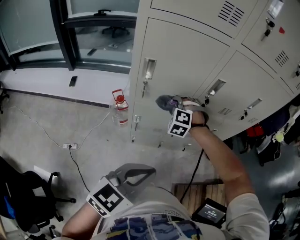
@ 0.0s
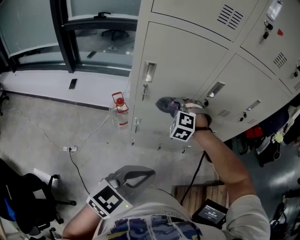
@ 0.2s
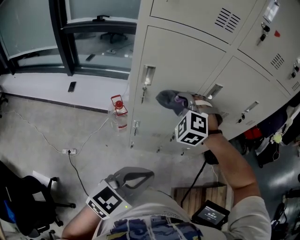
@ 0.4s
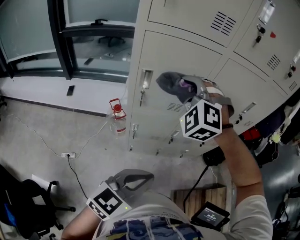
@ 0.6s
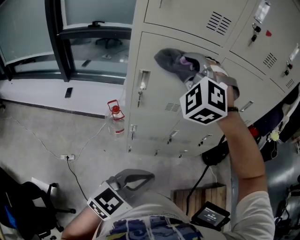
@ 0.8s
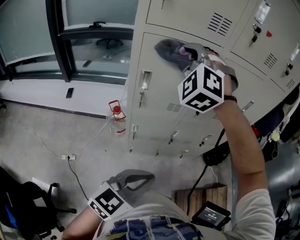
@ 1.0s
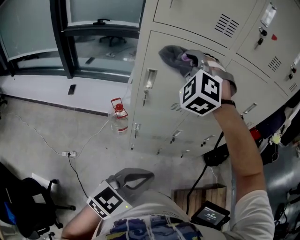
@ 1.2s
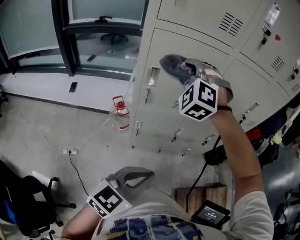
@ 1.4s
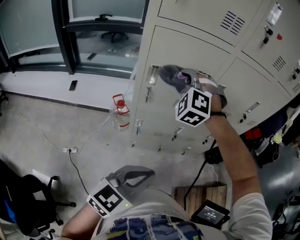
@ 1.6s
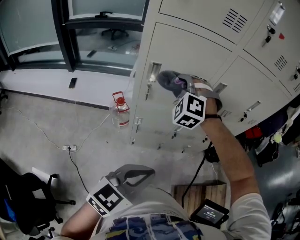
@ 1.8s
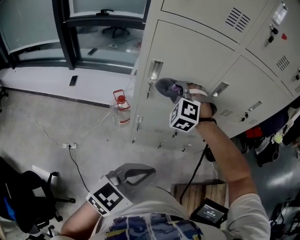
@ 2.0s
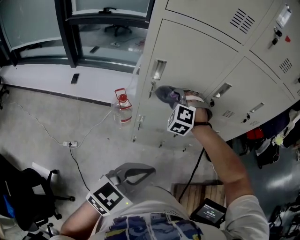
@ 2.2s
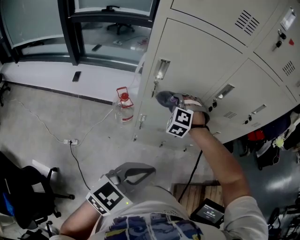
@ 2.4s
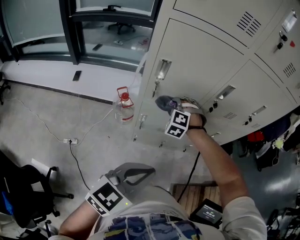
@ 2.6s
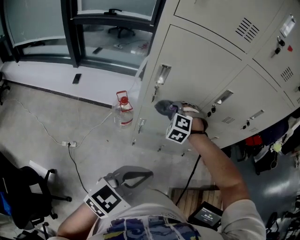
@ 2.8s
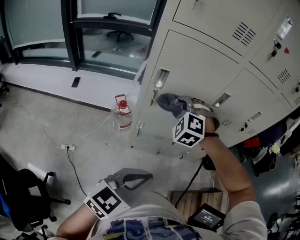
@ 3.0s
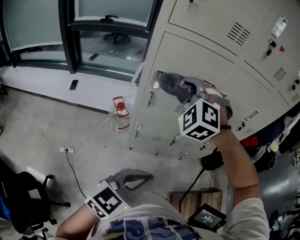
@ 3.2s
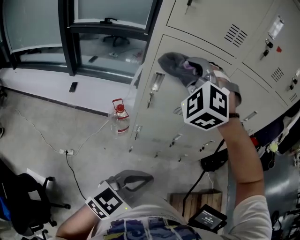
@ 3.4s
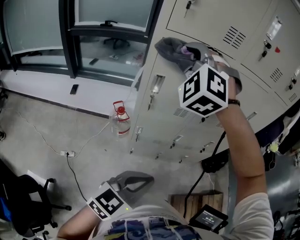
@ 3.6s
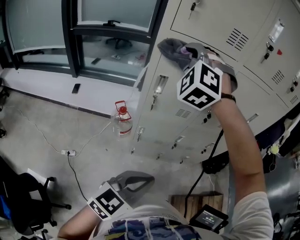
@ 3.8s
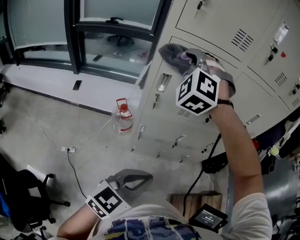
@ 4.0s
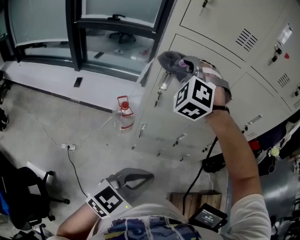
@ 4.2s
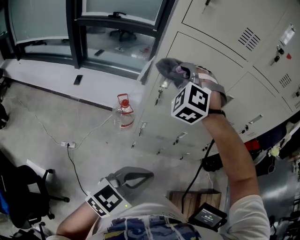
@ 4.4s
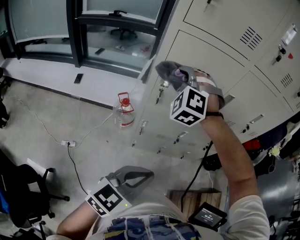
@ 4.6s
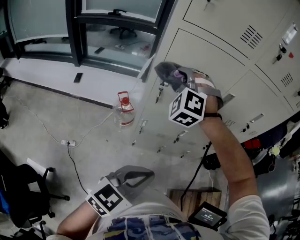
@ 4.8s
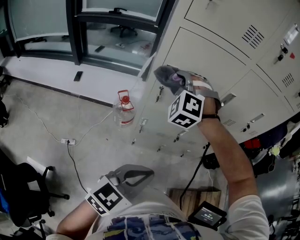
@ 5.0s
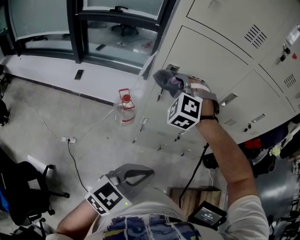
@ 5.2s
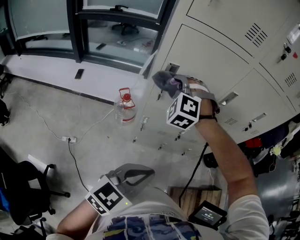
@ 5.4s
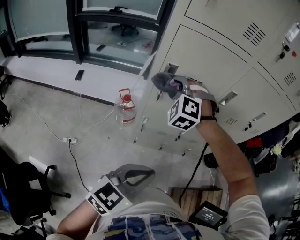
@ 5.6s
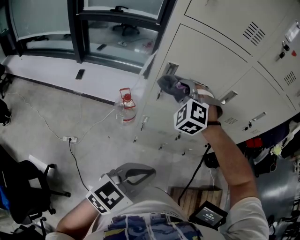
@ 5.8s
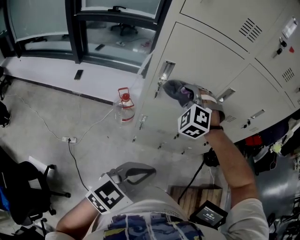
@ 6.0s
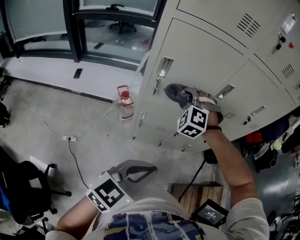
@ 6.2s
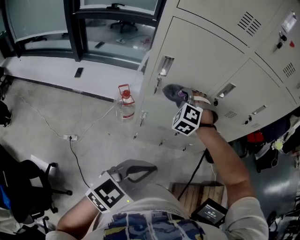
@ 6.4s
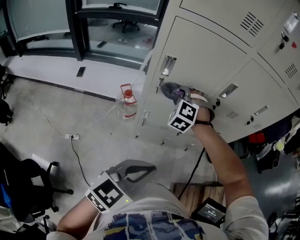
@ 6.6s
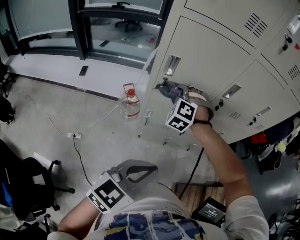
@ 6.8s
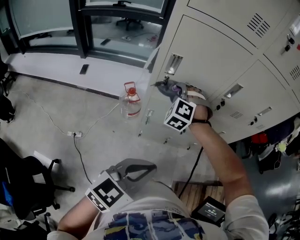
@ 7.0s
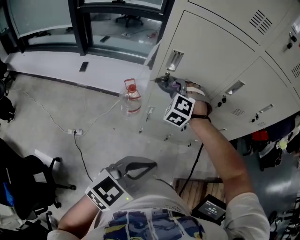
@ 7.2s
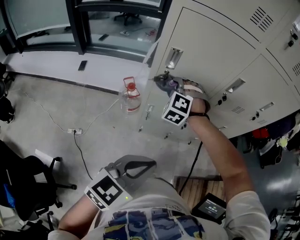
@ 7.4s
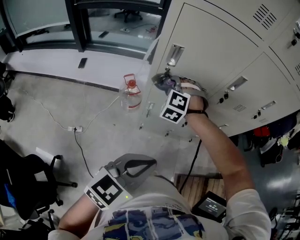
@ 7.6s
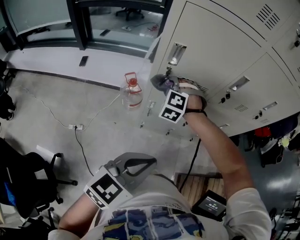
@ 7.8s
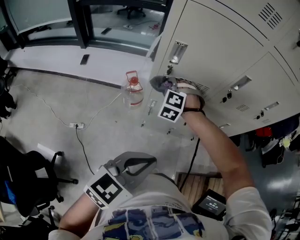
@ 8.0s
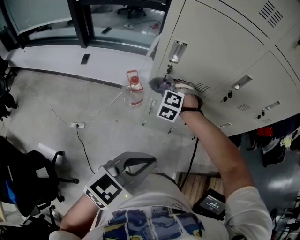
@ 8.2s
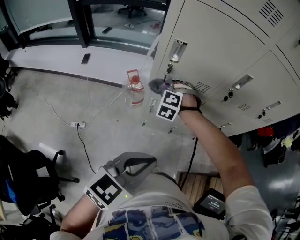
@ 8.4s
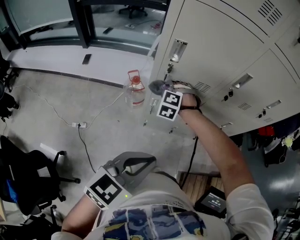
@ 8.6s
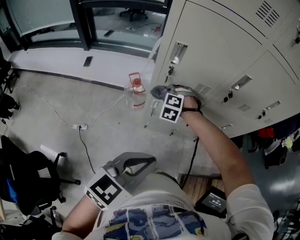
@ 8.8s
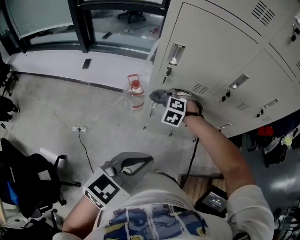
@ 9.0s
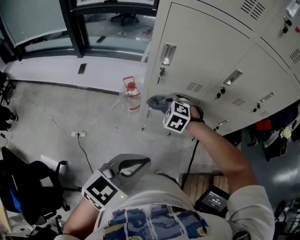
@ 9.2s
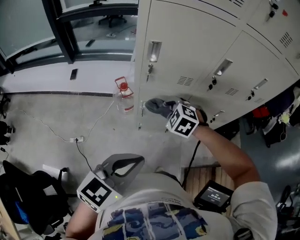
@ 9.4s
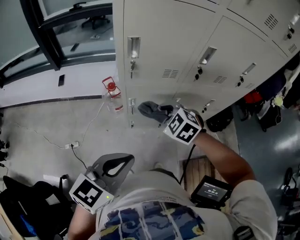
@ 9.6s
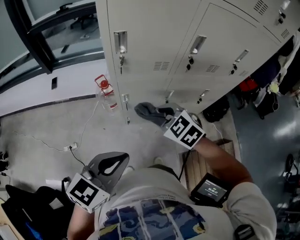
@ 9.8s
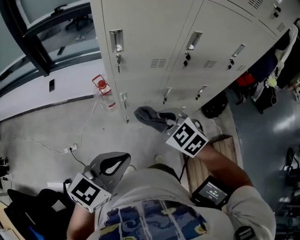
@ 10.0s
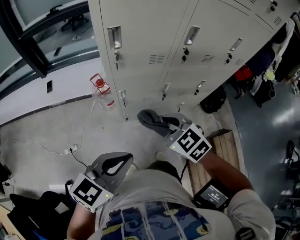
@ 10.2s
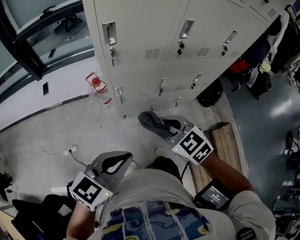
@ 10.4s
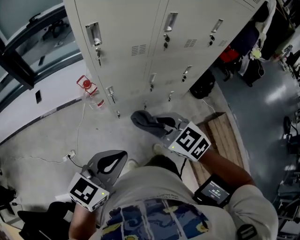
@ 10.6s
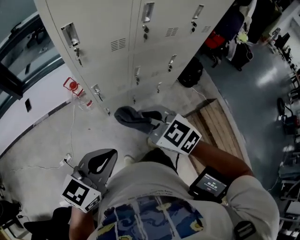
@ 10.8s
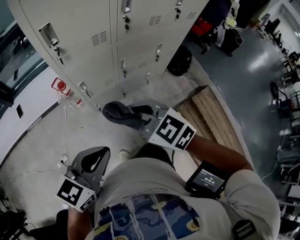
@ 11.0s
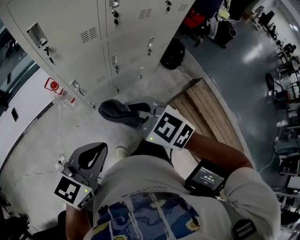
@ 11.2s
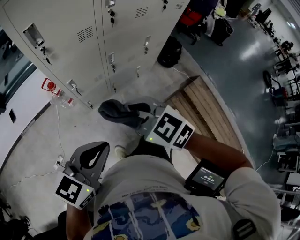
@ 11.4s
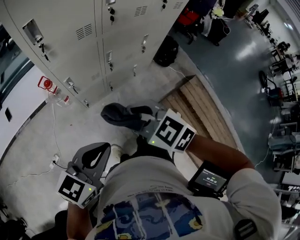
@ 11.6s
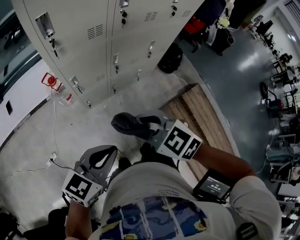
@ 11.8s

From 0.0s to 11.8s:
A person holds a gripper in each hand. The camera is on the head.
From 8.8s to 10.4s: The left gripper changes place by approximately 5 cm.
From 10.4s to 11.8s: The left gripper ends up approximately 5 cm from where it was.

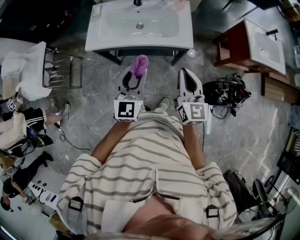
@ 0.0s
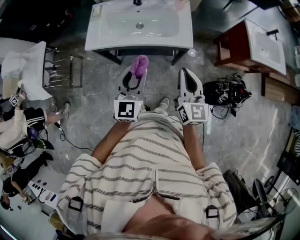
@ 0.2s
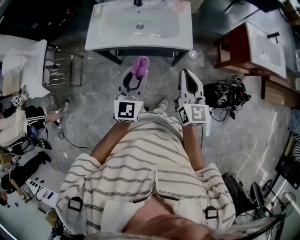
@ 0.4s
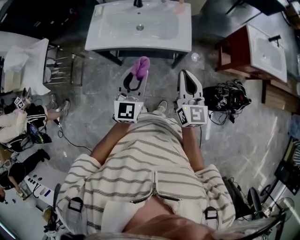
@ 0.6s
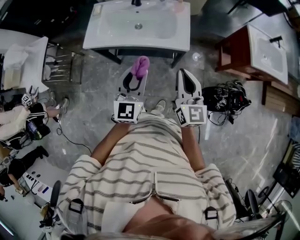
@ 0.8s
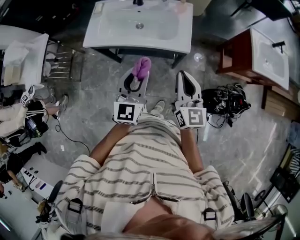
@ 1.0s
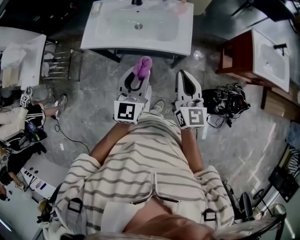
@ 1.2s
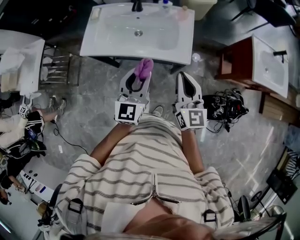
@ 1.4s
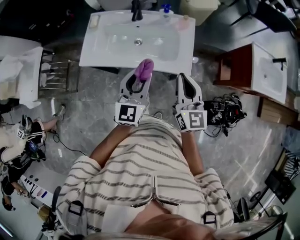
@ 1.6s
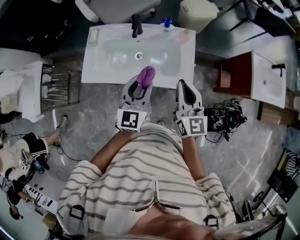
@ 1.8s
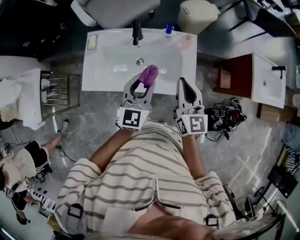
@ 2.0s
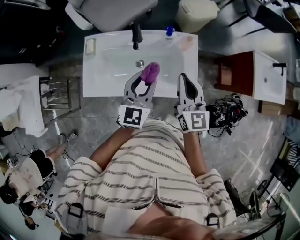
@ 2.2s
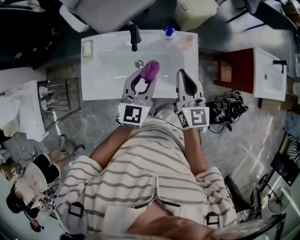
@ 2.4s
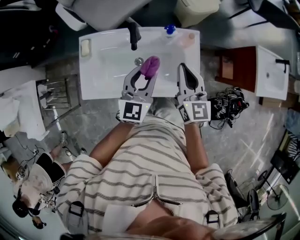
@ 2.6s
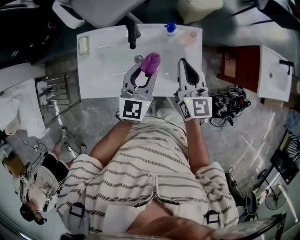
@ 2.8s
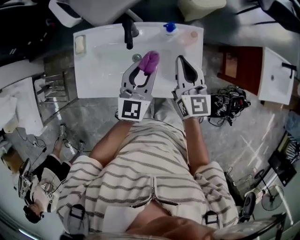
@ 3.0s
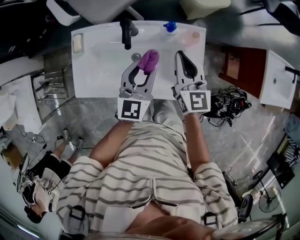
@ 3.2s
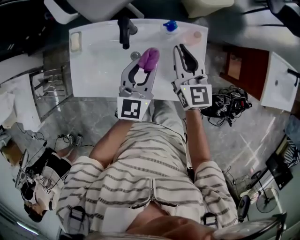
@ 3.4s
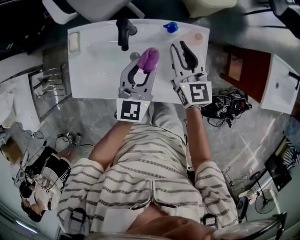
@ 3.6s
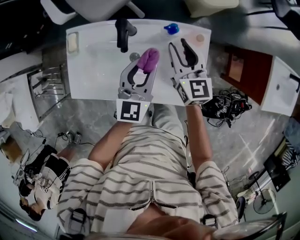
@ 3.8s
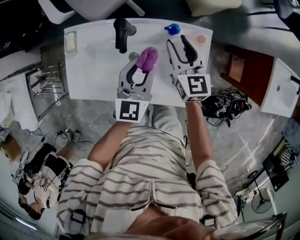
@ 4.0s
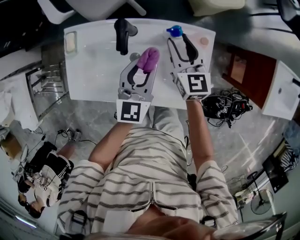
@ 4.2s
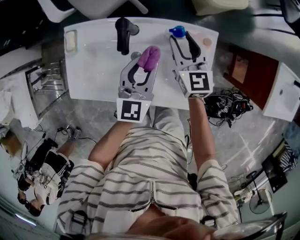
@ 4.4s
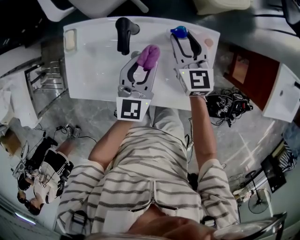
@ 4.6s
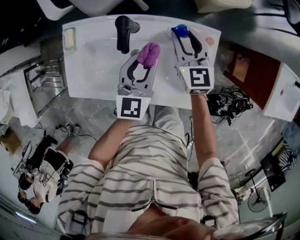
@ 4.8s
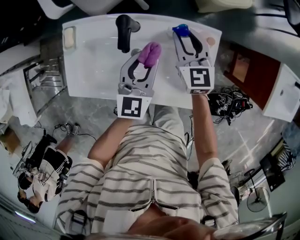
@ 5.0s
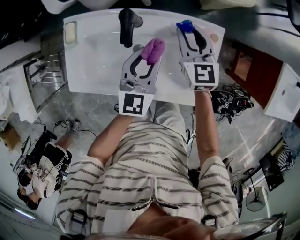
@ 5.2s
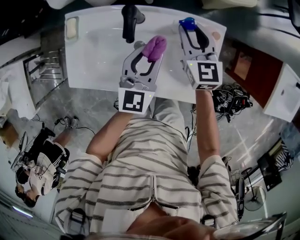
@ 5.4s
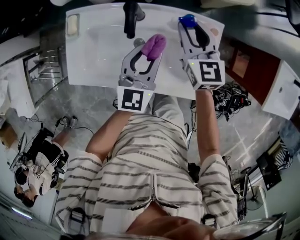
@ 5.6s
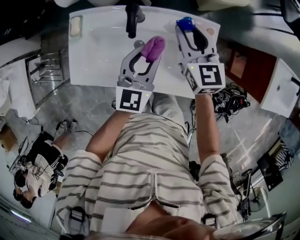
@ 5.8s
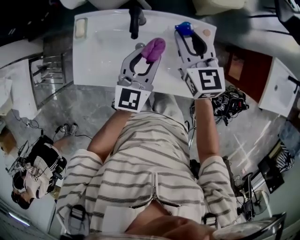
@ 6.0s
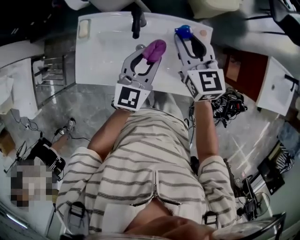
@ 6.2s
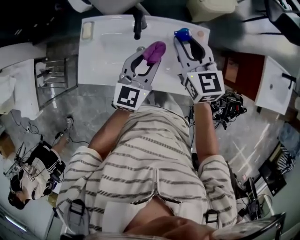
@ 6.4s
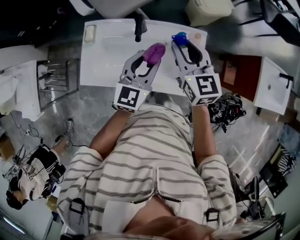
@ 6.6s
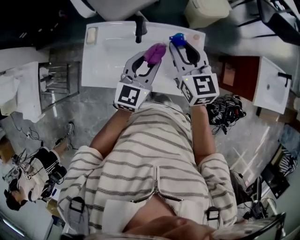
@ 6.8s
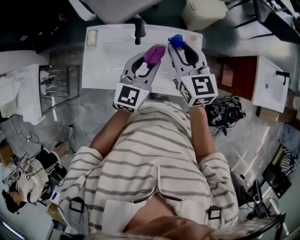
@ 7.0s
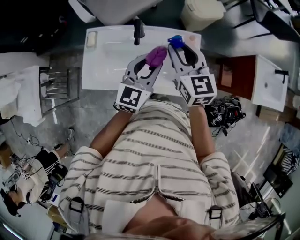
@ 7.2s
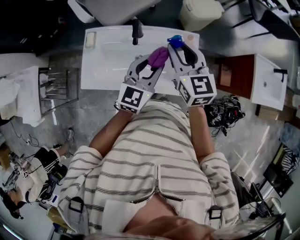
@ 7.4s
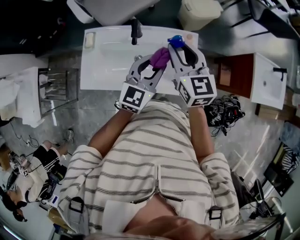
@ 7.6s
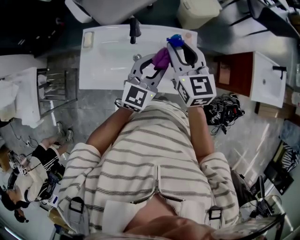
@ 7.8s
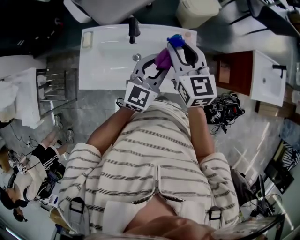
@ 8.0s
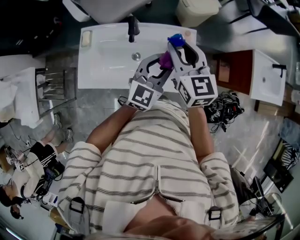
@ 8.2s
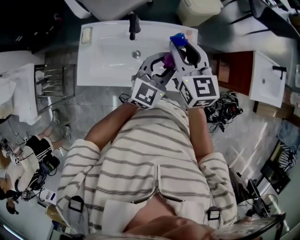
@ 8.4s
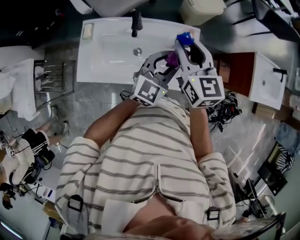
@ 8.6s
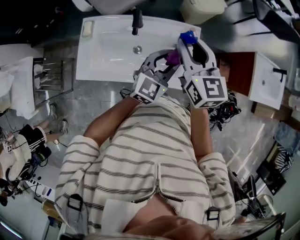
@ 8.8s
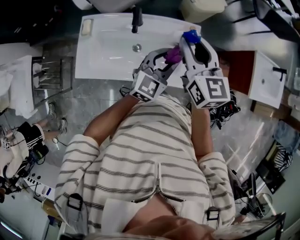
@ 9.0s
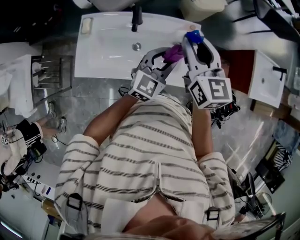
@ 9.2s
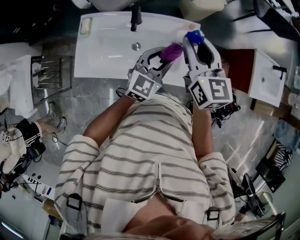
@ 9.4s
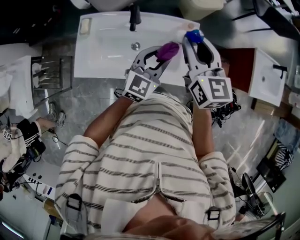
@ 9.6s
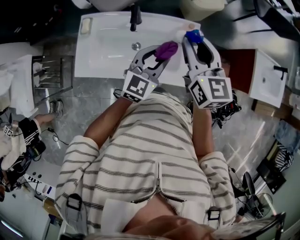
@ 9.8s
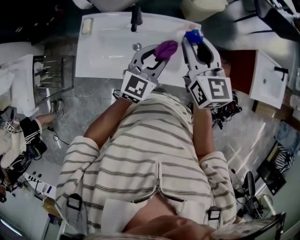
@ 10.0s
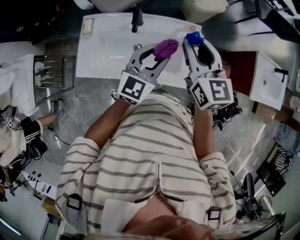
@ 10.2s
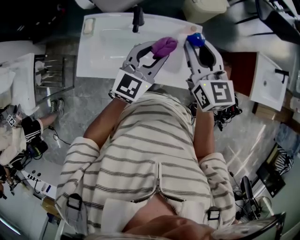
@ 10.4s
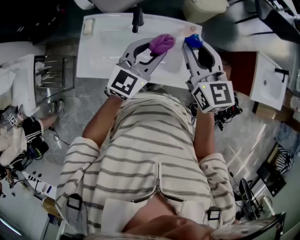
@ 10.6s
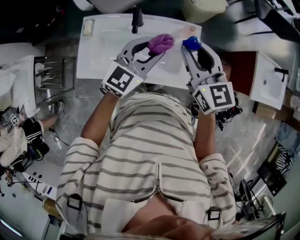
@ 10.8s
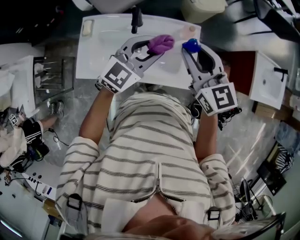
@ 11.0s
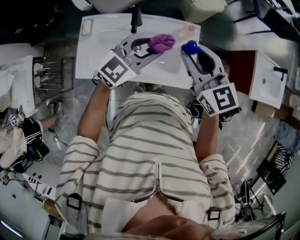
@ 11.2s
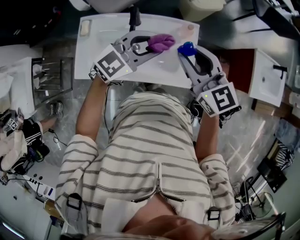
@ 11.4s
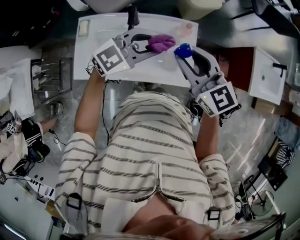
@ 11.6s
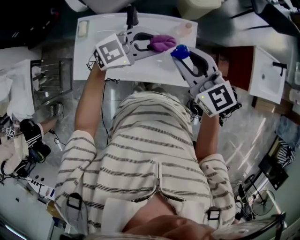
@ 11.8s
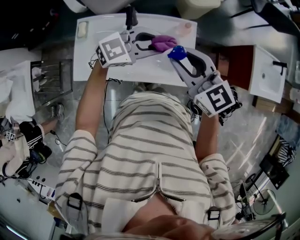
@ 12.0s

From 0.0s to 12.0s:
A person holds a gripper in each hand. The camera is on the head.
From 0.0s to 1.6s: The grippers both shift forward by roughly 15 cm.
From 1.6s to 3.0s: Both grippers travel together forward, some 25 cm.
From 3.0s to 4.4s: The left gripper goes approximately 10 cm downward and forward. The right gripper goes about 15 cm forward and downward, and opens.
From 4.4s to 6.0s: The left gripper is displaced upward by about 5 cm; the right gripper goes roughly 10 cm upward.
From 6.0s to 7.6s: Both grippers move upward and backward, approximately 10 cm.
From 7.6s to 9.0s: The left gripper shifts by some 5 cm.
From 9.0s to 10.4s: The left gripper heads upward, covering approximately 5 cm.
From 10.4s to 12.0s: The right gripper changes place by some 5 cm, and rotates about 20 degrees; the left gripper turns by approximately 40 degrees.

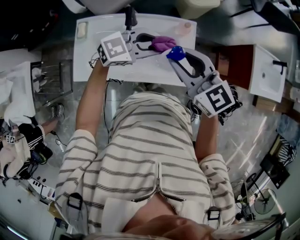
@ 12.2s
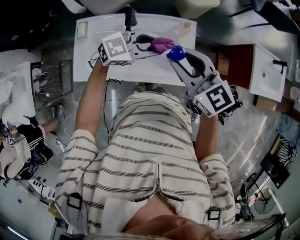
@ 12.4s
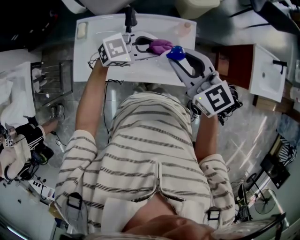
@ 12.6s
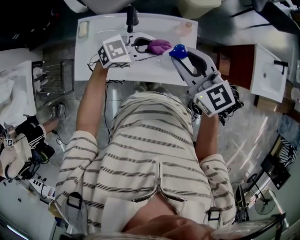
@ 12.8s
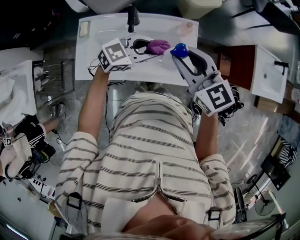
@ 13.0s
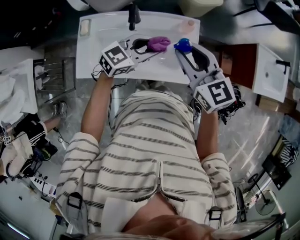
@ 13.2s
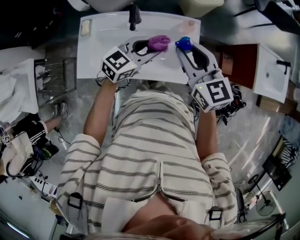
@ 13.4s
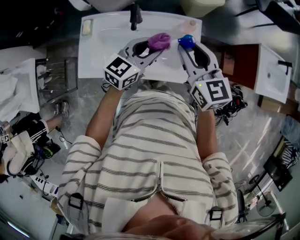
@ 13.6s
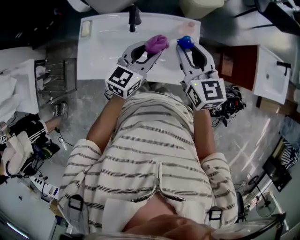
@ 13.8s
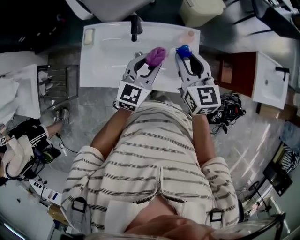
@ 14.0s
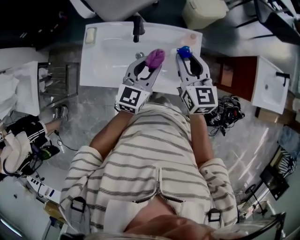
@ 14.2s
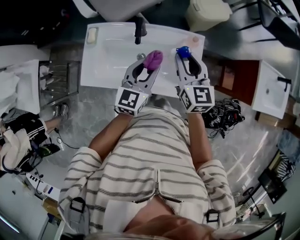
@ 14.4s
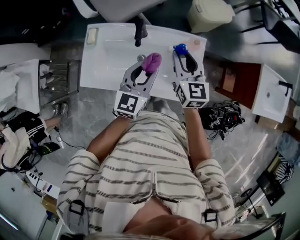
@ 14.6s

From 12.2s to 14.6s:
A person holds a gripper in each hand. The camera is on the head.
From 12.2s to 13.4s: The left gripper swivels approximately 30 degrees.
From 13.4s to 14.6s: The left gripper rotates some 30 degrees. Meanwhile the right gripper moves forward and downward, approximately 10 cm.
